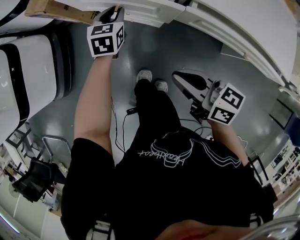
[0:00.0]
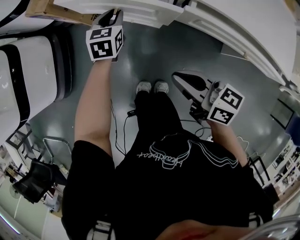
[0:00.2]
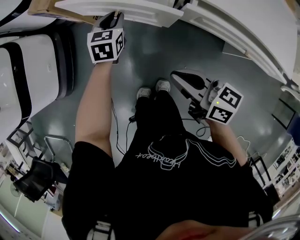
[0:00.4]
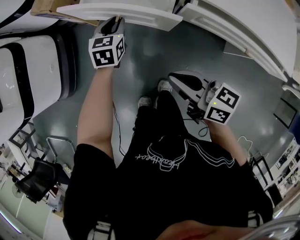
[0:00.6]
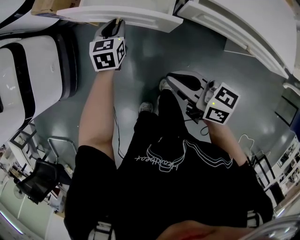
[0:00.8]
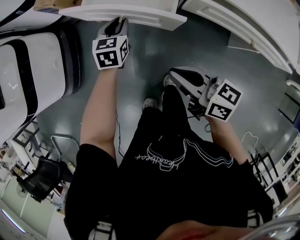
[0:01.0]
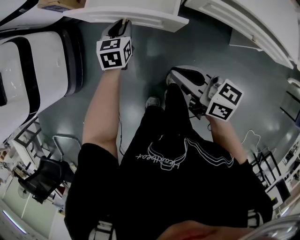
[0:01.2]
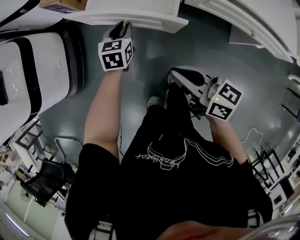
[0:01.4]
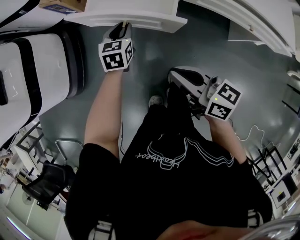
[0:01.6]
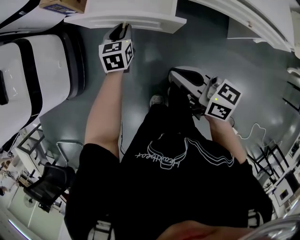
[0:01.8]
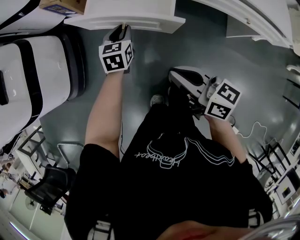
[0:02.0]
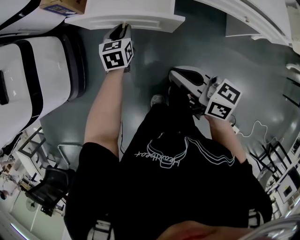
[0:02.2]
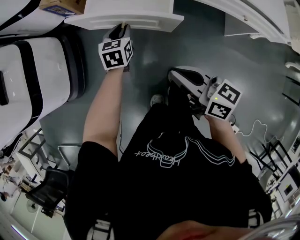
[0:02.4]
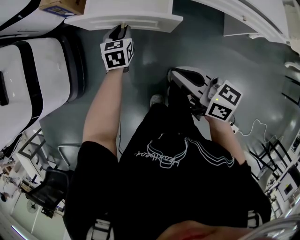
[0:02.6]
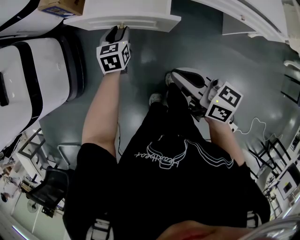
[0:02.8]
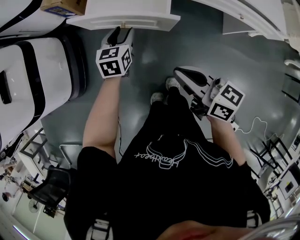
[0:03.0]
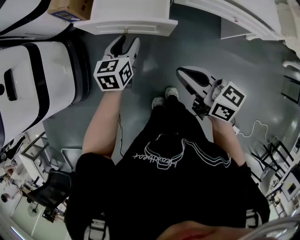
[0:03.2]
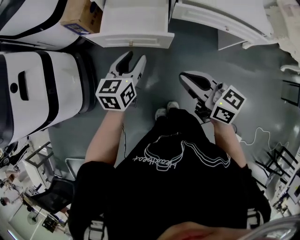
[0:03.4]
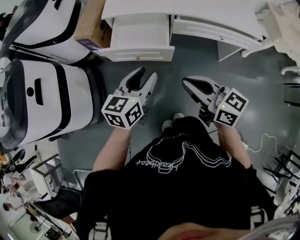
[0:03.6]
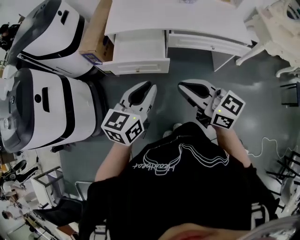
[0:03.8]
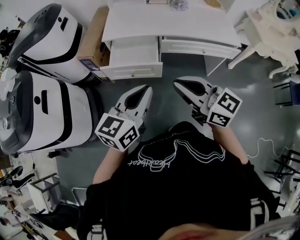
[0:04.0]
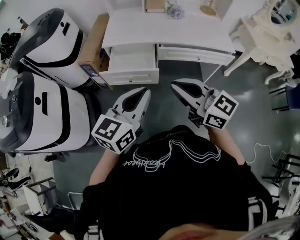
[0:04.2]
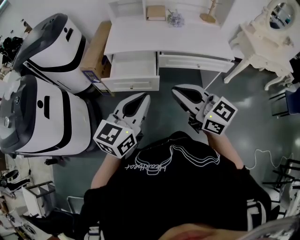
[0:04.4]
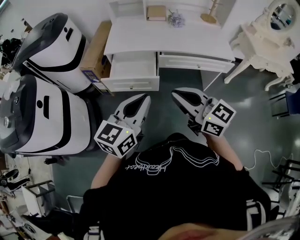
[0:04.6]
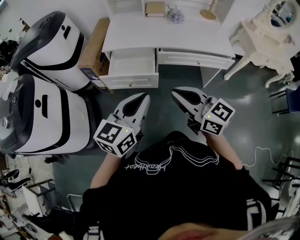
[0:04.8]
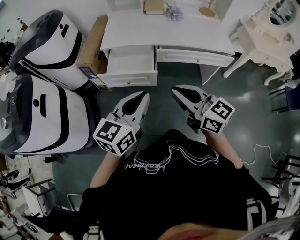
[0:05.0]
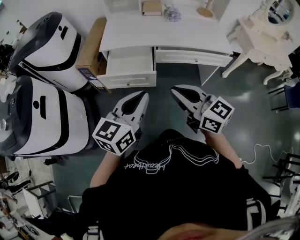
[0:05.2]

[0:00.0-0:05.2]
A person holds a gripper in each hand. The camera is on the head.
0:00.0 to 0:01.8: The left gripper moves backward and to the left, approximately 15 cm; the right gripper heads to the left and backward, covering about 15 cm.
0:01.8 to 0:03.4: The right gripper is displaced upward by approximately 10 cm; the left gripper goes some 20 cm upward and backward, turns by about 20 degrees, and opens.
0:03.4 to 0:05.2: The right gripper travels upward by some 15 cm, and turns by approximately 20 degrees; the left gripper travels upward and backward by some 30 cm, rotates roughly 20 degrees, and closes its fingers.

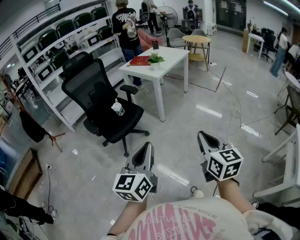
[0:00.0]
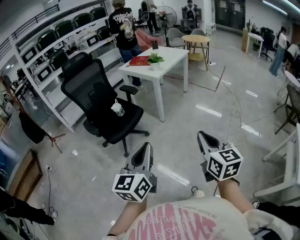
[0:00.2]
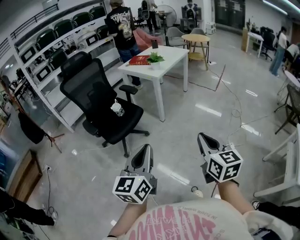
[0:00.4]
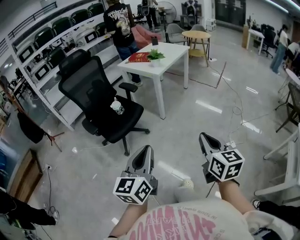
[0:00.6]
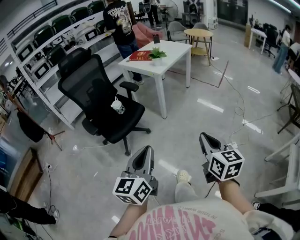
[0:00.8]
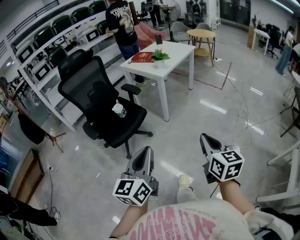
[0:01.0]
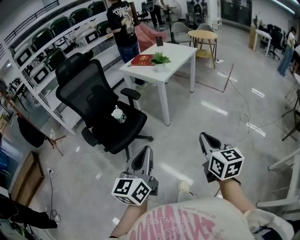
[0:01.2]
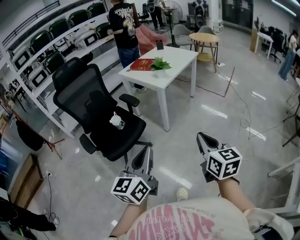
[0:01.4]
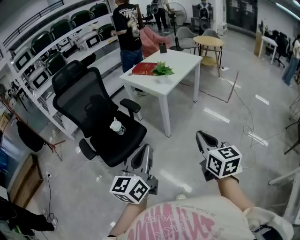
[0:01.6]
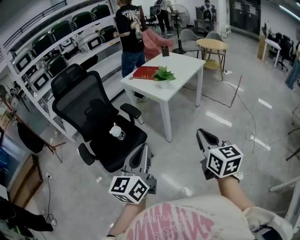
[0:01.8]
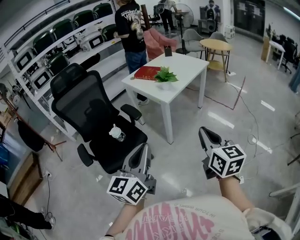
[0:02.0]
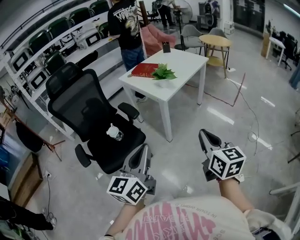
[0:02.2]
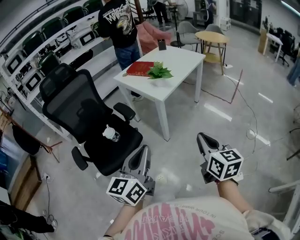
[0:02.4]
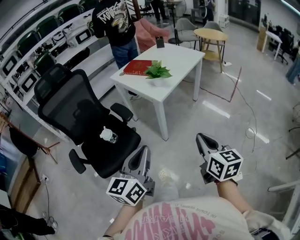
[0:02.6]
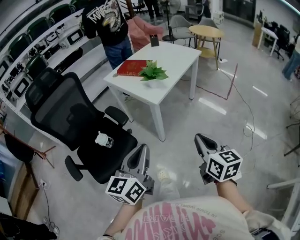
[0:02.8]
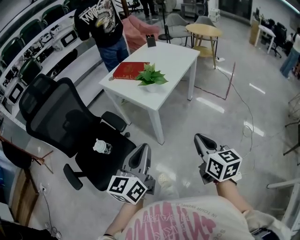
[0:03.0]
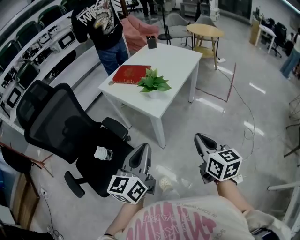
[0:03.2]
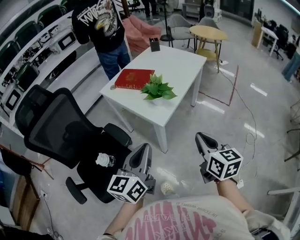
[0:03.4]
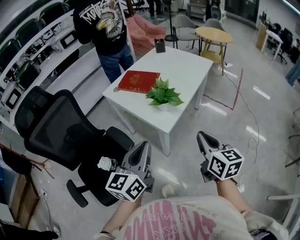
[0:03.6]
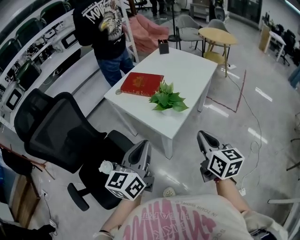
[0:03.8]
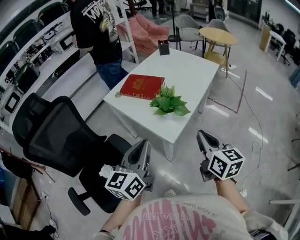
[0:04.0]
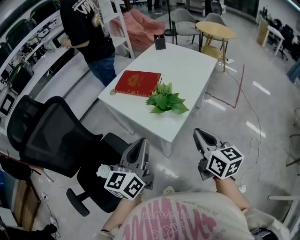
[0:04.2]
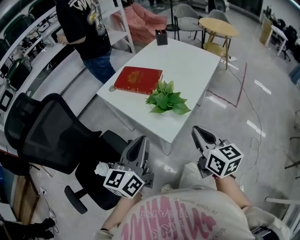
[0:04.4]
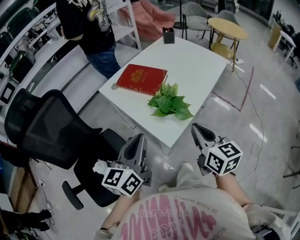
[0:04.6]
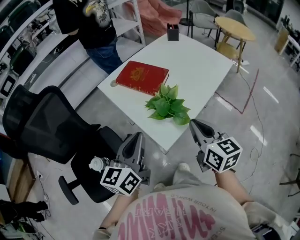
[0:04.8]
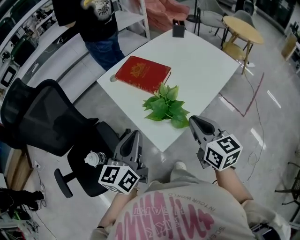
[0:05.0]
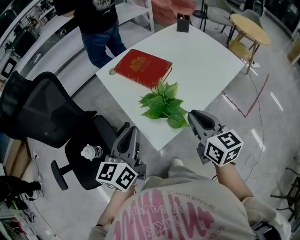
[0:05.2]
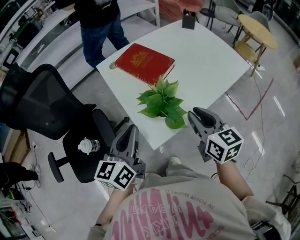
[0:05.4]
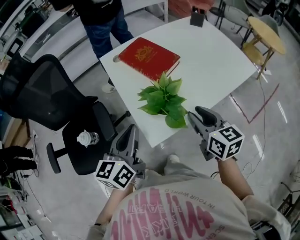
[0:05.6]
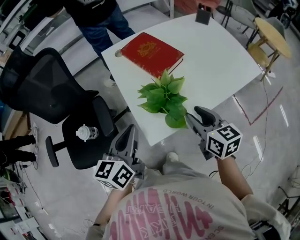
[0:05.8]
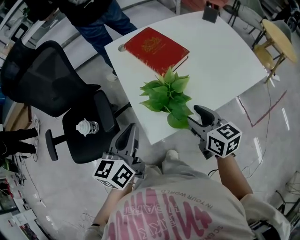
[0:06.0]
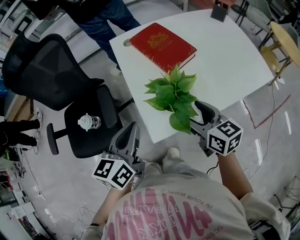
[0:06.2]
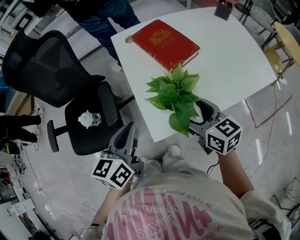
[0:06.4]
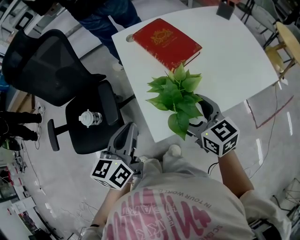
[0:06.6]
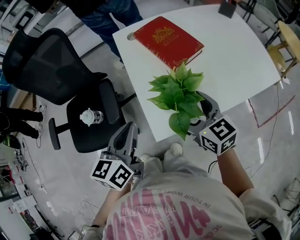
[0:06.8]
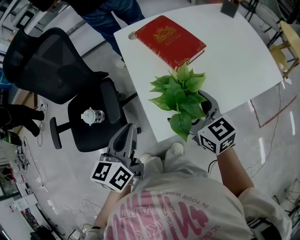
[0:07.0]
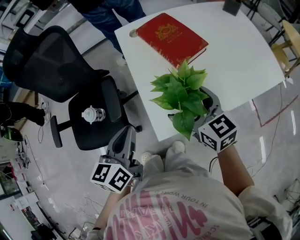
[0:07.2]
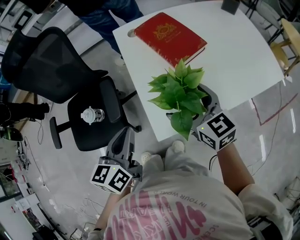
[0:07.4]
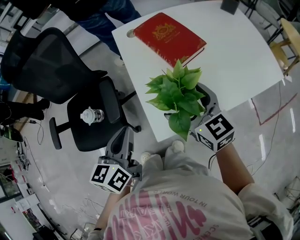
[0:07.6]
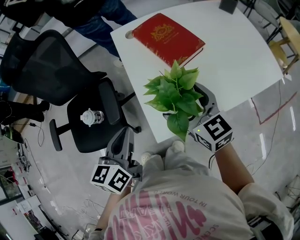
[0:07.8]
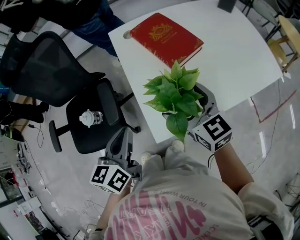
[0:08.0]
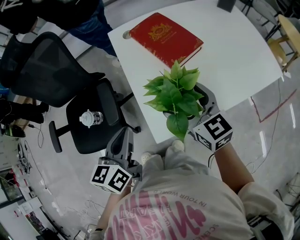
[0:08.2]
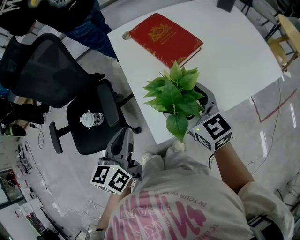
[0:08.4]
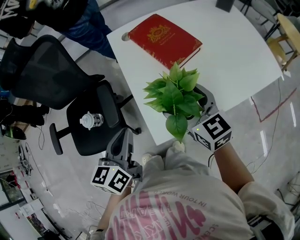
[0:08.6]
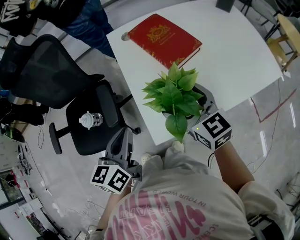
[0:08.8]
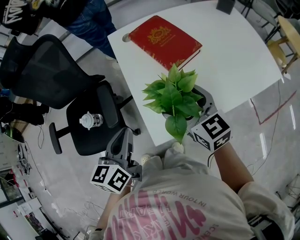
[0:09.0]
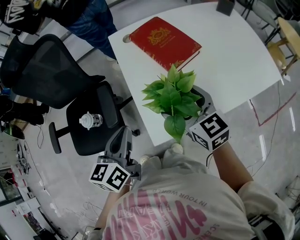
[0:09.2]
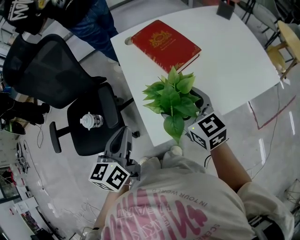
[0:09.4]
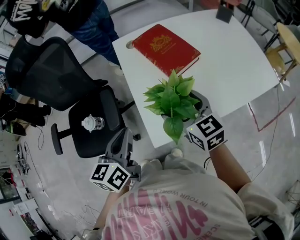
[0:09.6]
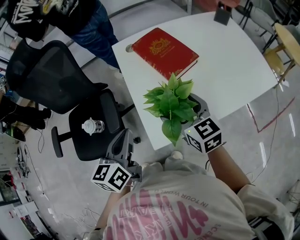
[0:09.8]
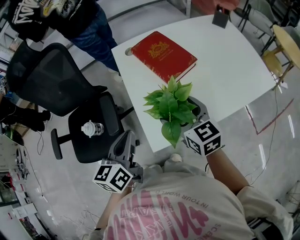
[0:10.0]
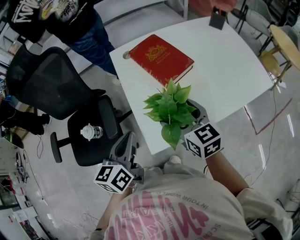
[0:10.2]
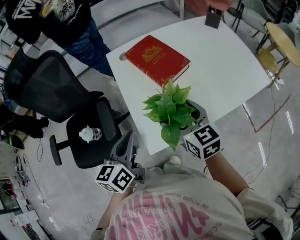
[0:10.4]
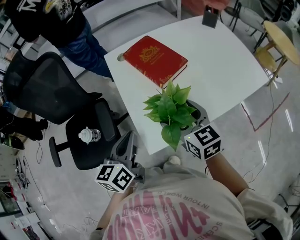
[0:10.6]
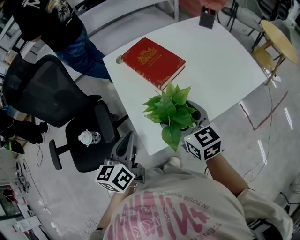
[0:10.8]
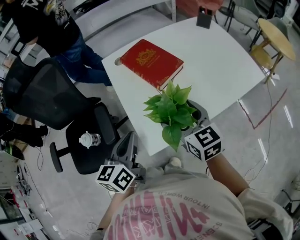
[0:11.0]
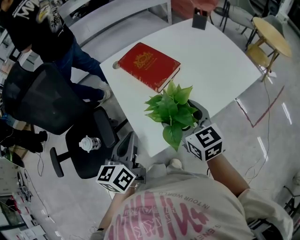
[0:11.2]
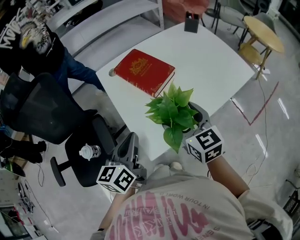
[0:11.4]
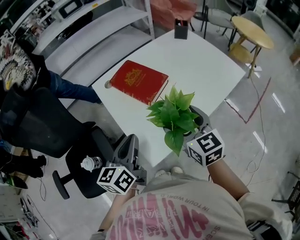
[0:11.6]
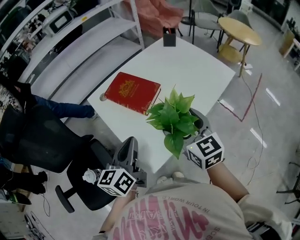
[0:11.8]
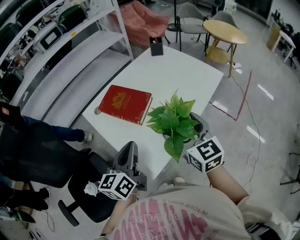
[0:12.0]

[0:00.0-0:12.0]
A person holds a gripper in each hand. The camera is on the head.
0:00.0 to 0:01.6: Both grippers travel together forward, roughly 35 cm.
0:01.6 to 0:03.0: Both grippers move forward, approximately 30 cm.
0:03.0 to 0:04.4: The two grippers go roughly 30 cm forward.
0:04.4 to 0:06.0: The left gripper travels downward by about 10 cm, and rotates roughly 30 degrees. The right gripper shifts by about 25 cm, changes its angle by approximately 40 degrees, and opens its fingers.
0:06.0 to 0:07.6: The right gripper shifts roughly 10 cm forward and to the left, swivels about 20 degrees, and opens its fingers.
0:07.6 to 0:09.0: Neither gripper changes place.
0:09.0 to 0:10.4: The grippers make only small movements.
0:10.4 to 0:12.0: The right gripper shifts some 10 cm upward, and turns by approximately 30 degrees. The left gripper moves about 10 cm, and turns by about 30 degrees.

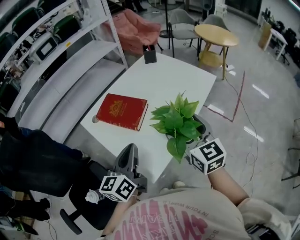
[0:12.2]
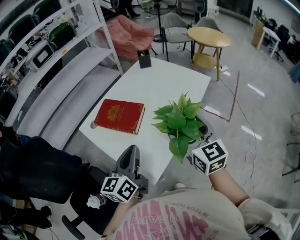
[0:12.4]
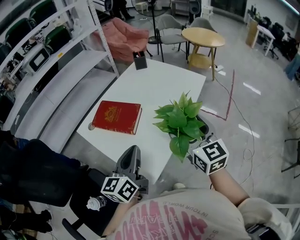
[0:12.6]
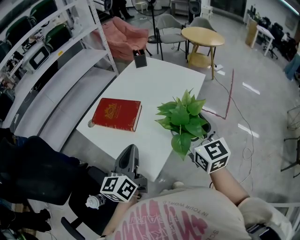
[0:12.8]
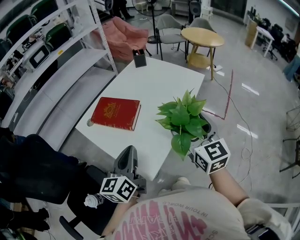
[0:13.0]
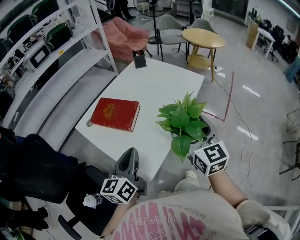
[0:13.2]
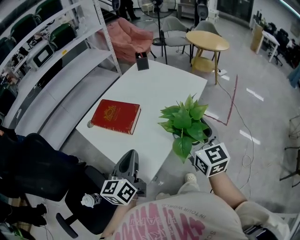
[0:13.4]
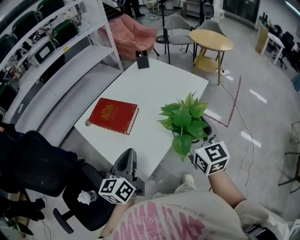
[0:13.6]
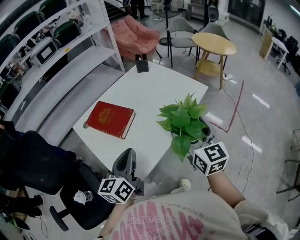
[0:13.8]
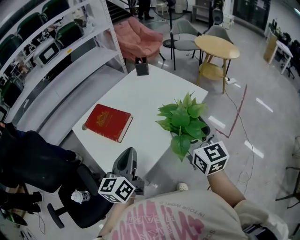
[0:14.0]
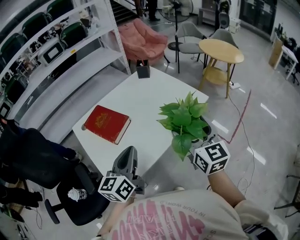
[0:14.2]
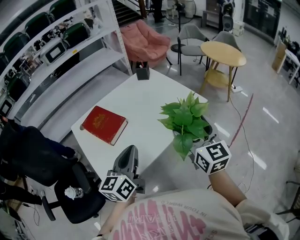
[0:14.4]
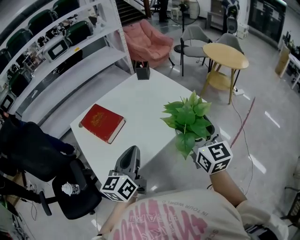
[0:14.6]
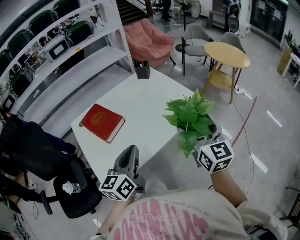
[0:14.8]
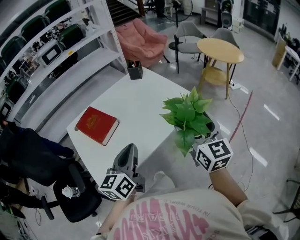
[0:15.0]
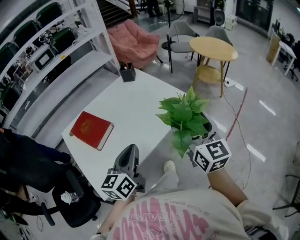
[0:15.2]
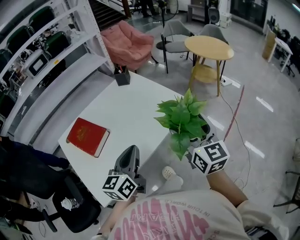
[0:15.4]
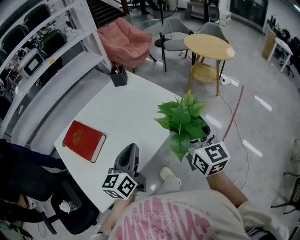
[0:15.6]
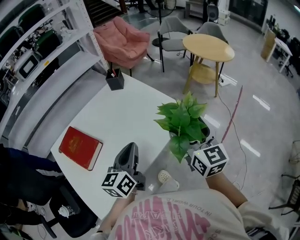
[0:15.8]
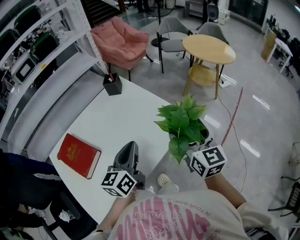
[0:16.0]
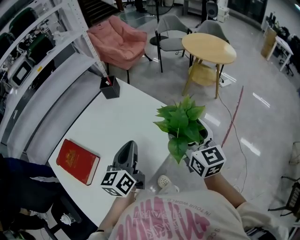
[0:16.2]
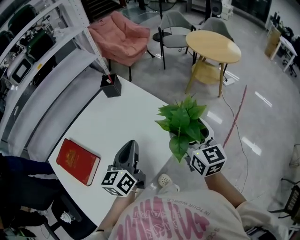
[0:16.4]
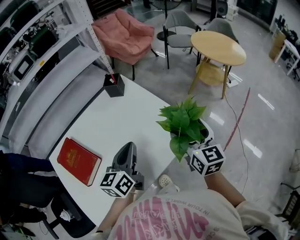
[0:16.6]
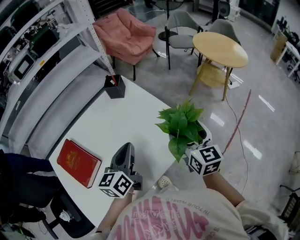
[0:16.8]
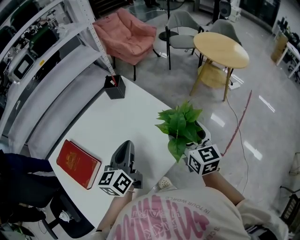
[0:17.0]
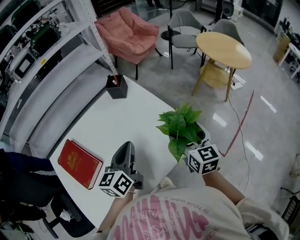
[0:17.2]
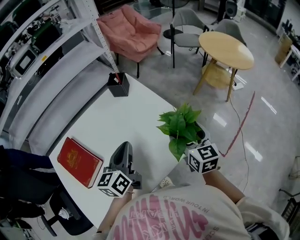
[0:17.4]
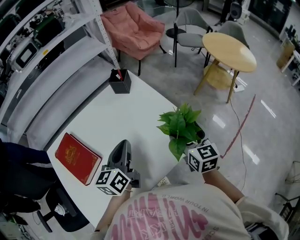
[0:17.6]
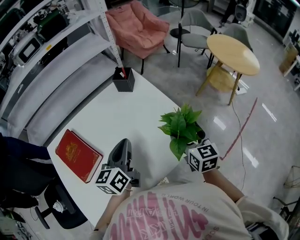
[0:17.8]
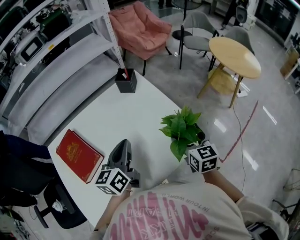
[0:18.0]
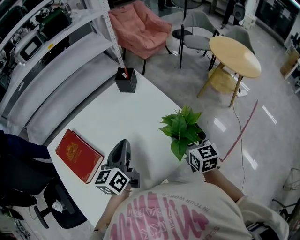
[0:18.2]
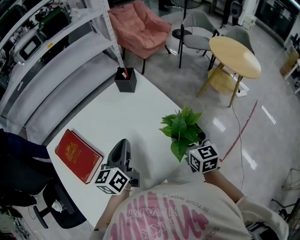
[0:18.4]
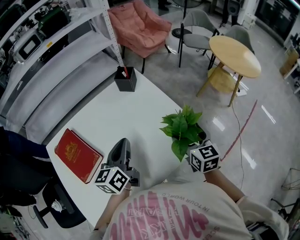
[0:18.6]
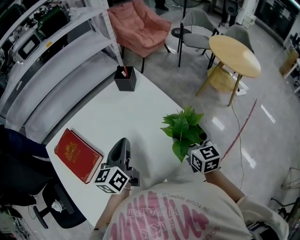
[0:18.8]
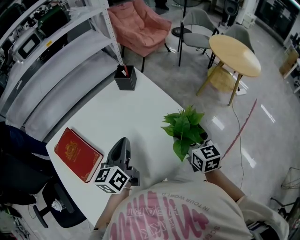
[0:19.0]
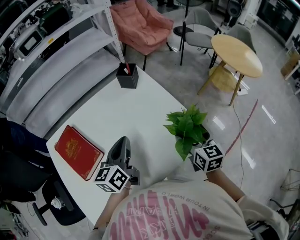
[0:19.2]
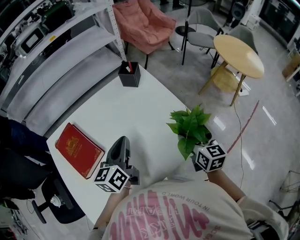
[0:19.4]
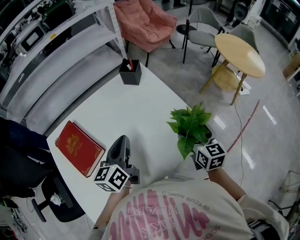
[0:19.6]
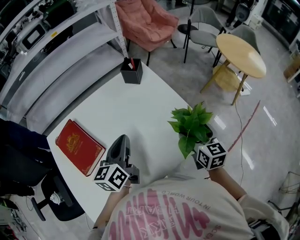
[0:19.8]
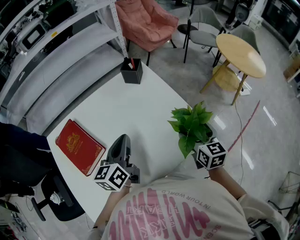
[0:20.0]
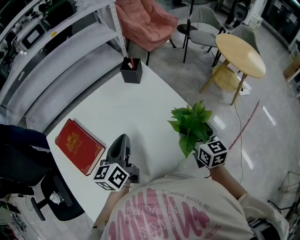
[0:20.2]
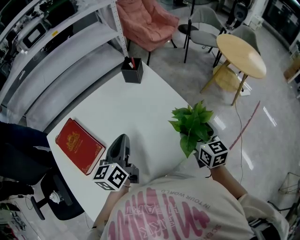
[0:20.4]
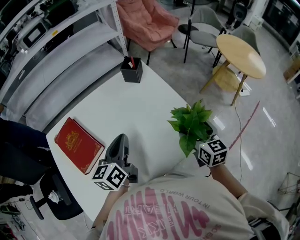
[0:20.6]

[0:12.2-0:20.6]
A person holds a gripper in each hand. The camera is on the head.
0:12.2 to 0:13.6: The left gripper shifts roughly 5 cm to the right. Meanwhile the right gripper goes about 10 cm to the right.
0:13.6 to 0:15.0: The right gripper moves to the right and forward, some 20 cm, while the left gripper shifts some 20 cm to the right.
0:15.0 to 0:16.4: The two grippers go approximately 25 cm forward.
0:16.4 to 0:17.8: The right gripper moves downward and forward, roughly 10 cm. The left gripper shifts roughly 5 cm to the left.
0:17.8 to 0:20.6: The grippers move only a little.
